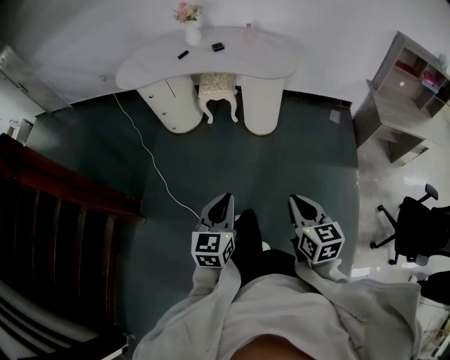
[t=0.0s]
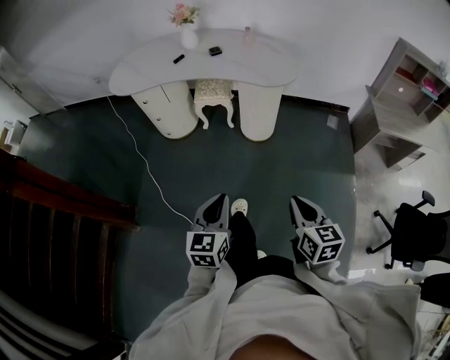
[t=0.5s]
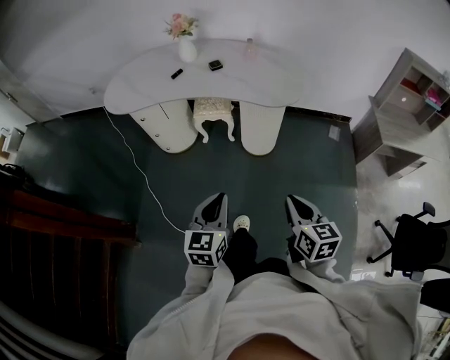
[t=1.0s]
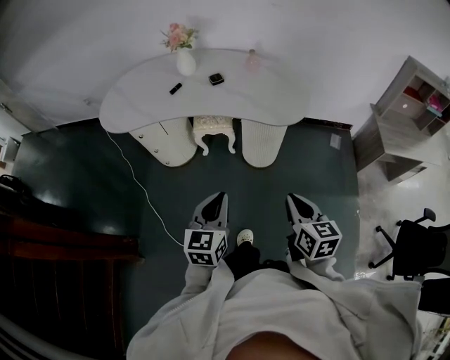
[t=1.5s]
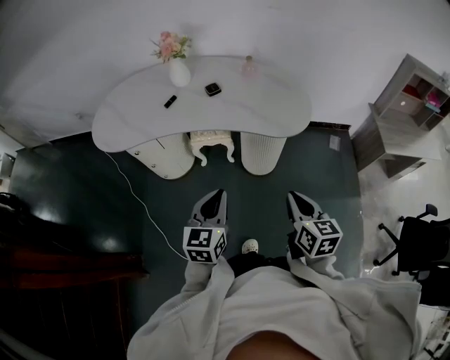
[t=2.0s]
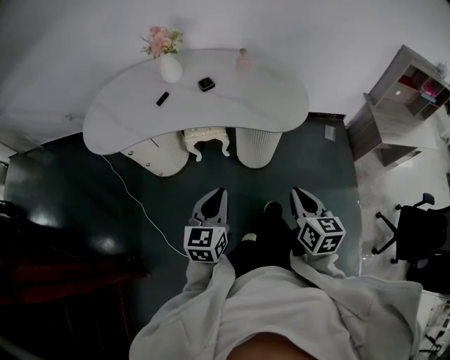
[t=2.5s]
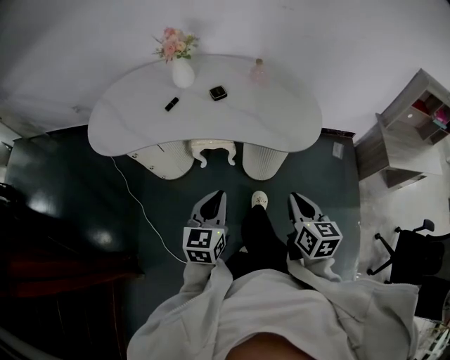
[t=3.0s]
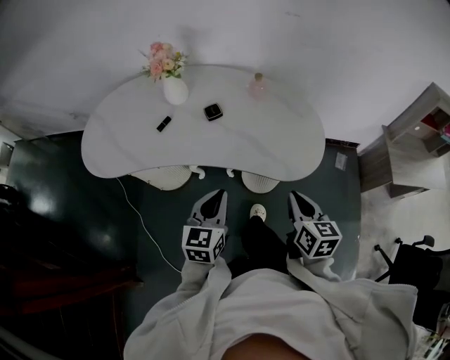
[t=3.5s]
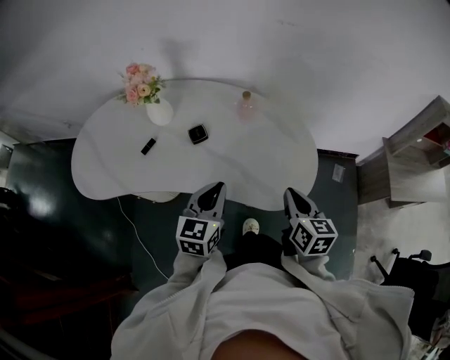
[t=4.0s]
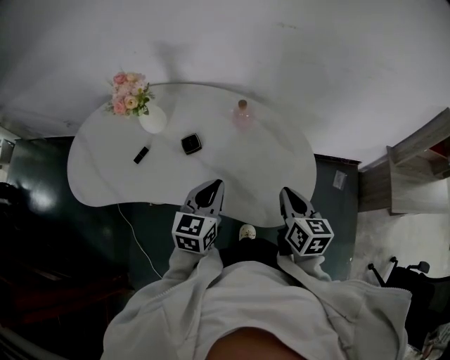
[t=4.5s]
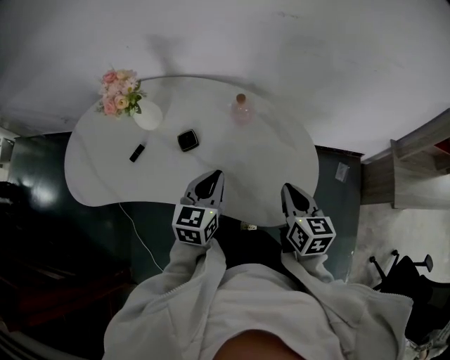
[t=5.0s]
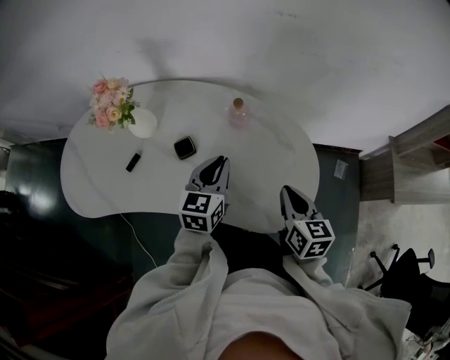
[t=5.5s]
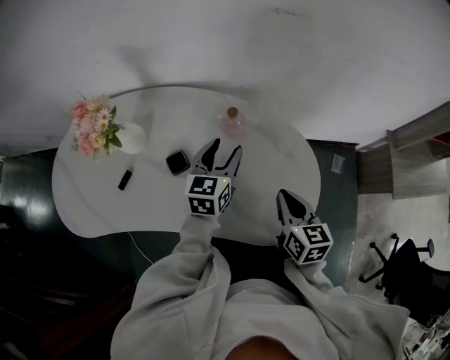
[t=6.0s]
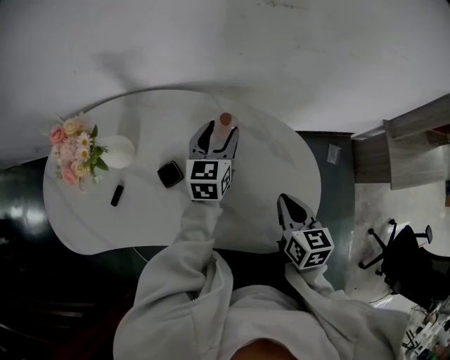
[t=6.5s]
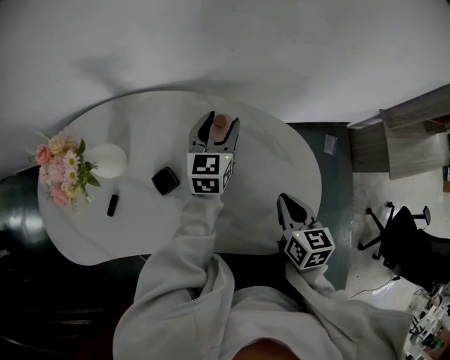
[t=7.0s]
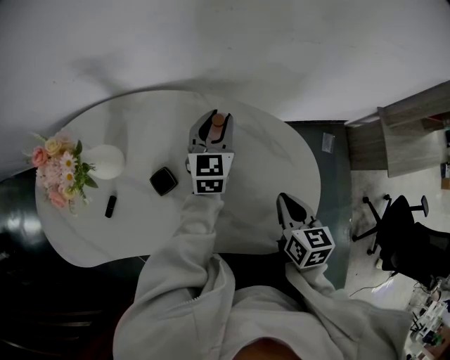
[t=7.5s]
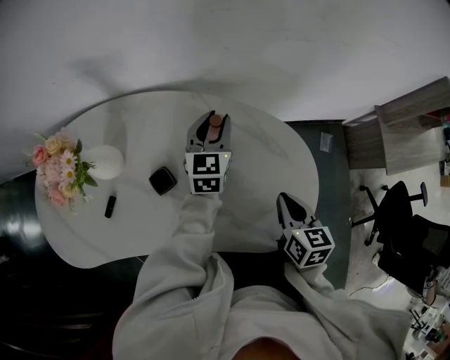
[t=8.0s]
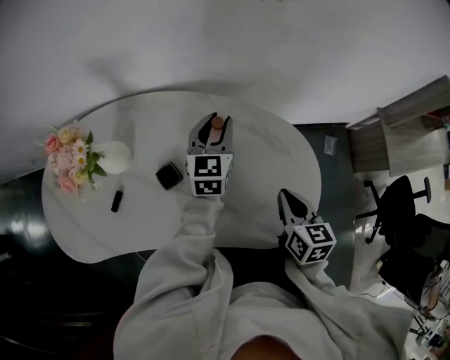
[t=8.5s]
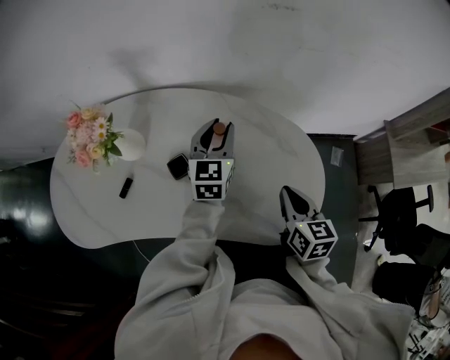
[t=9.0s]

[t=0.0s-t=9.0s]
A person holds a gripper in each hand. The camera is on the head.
t=0.0s to t=2.0s: Both grippers travel together forward, some 35 cm.
t=2.0s to t=4.5s: Both grippers travel together forward, about 35 cm.
t=4.5s to t=7.0s: The right gripper heads forward and downward, covering some 10 cm. Meanwhile the left gripper is displaced forward by about 30 cm, and opens its fingers.
t=7.0s to t=9.0s: The left gripper shifts roughly 5 cm backward, and closes its fingers.

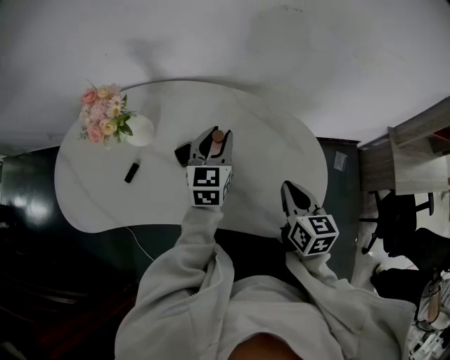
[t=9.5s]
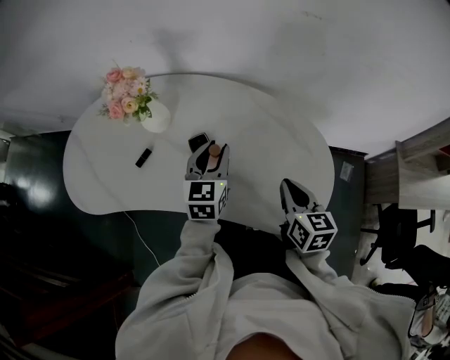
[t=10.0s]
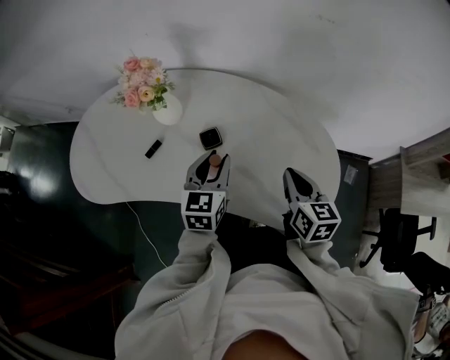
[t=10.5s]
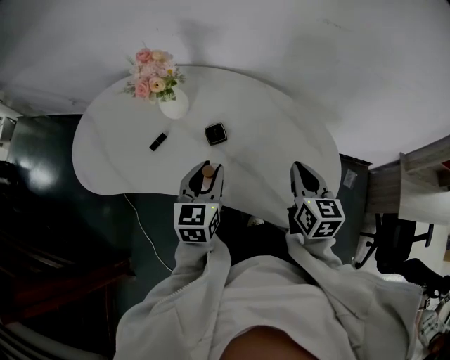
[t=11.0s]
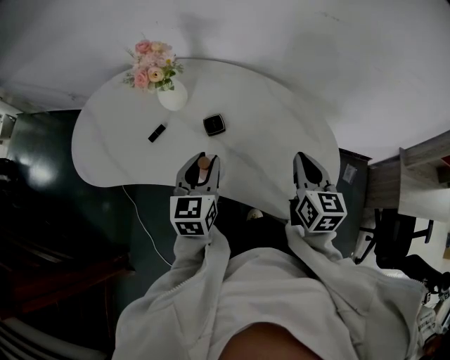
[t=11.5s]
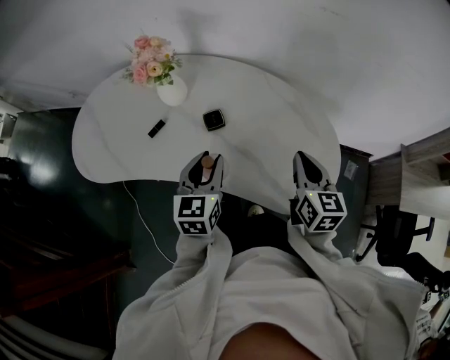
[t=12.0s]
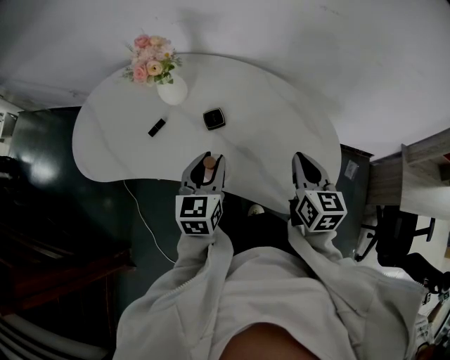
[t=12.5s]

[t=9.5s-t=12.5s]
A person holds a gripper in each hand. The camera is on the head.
t=9.5s to t=11.0s: The right gripper shifts by approximately 5 cm. The left gripper moves backward and to the left, approximately 20 cm.
t=11.0s to t=12.5s: The grippers stay close to where they were, moving slightly.

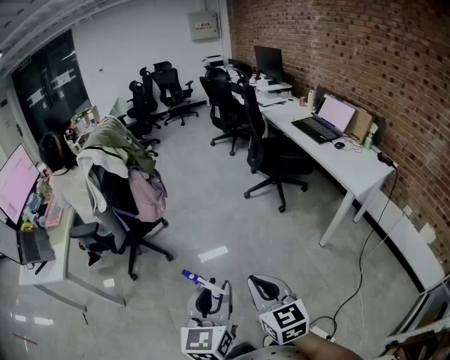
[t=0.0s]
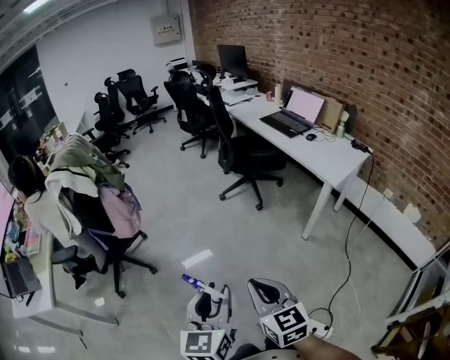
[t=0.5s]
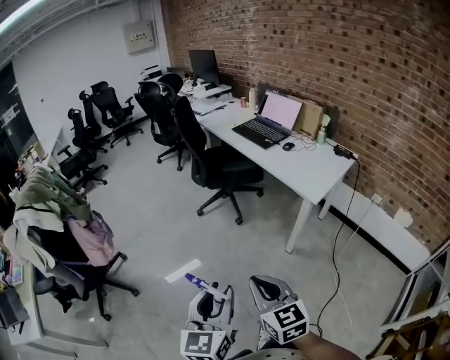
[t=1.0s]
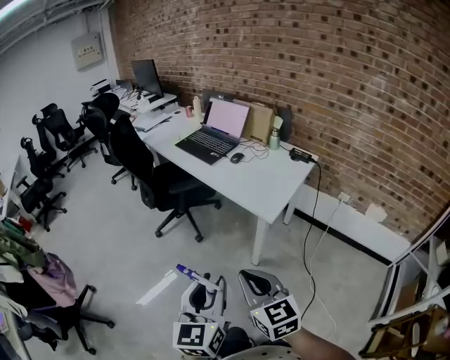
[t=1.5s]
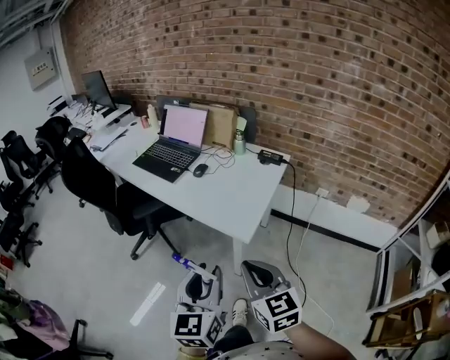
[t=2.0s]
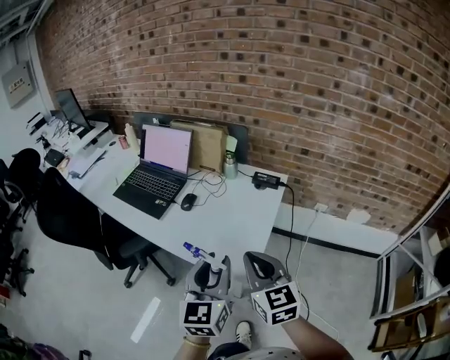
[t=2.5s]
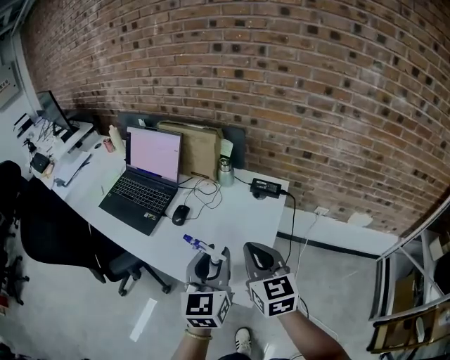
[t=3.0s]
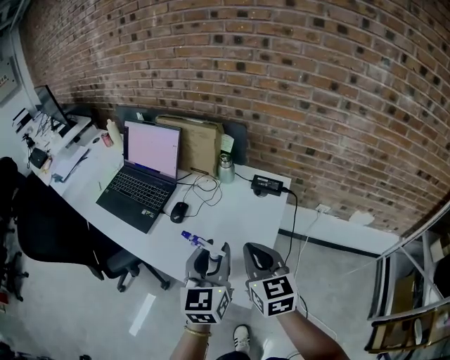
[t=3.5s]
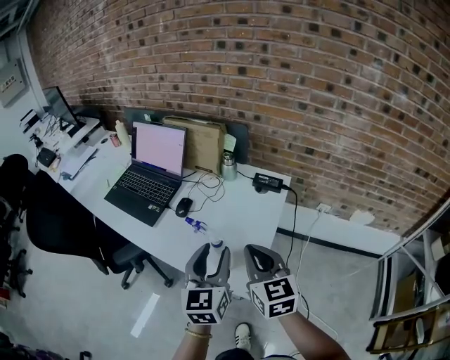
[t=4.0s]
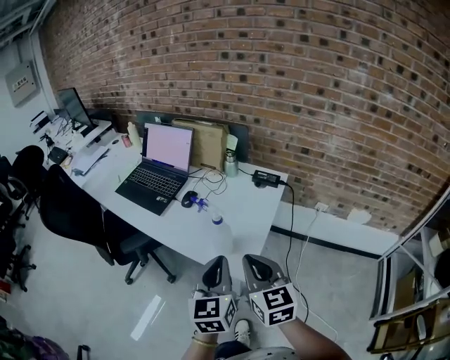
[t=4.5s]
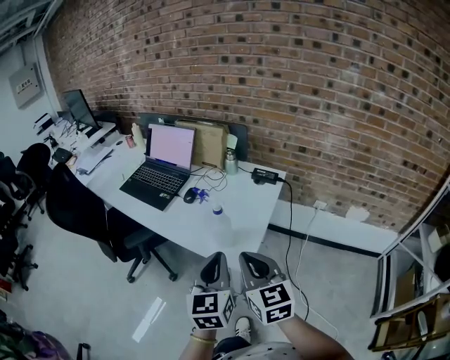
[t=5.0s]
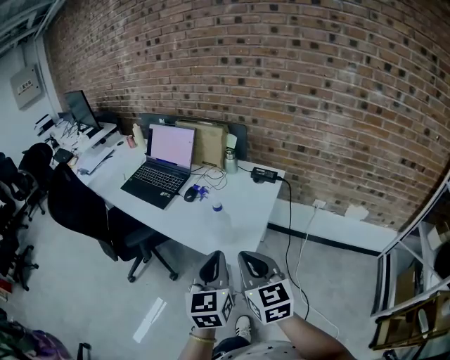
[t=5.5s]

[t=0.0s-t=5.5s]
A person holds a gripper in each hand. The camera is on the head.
t=0.0s to t=2.0s: The pair of grippers is taken roughly 60 cm. The left gripper turns by some 40 degrees; the right gripper turns by approximately 40 degrees.
t=2.0s to t=3.5s: Both grippers move forward, approximately 35 cm.
t=3.5s to t=5.5s: The two grippers go approximately 20 cm backward. The left gripper closes.

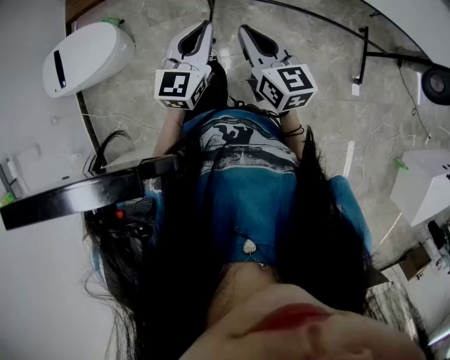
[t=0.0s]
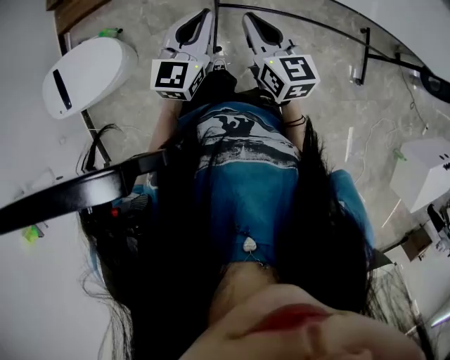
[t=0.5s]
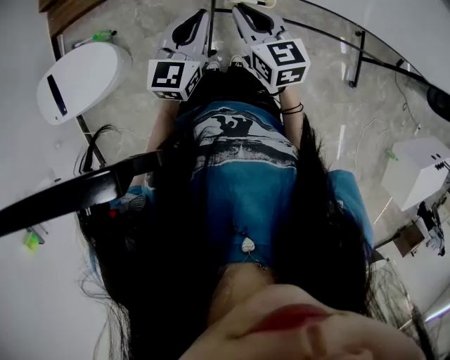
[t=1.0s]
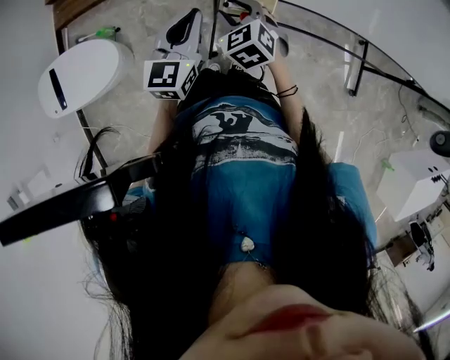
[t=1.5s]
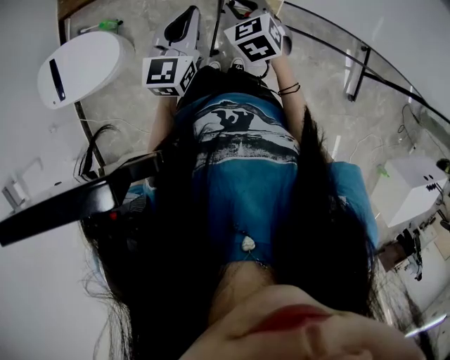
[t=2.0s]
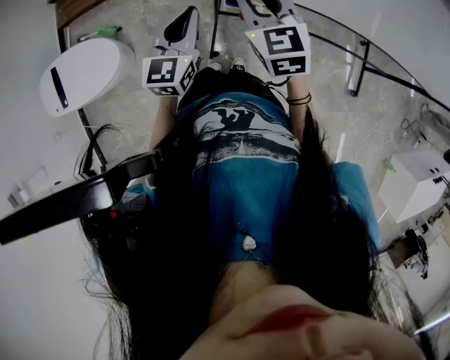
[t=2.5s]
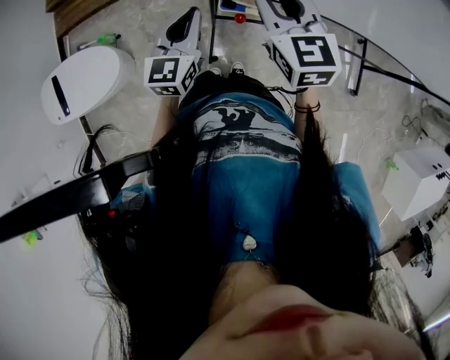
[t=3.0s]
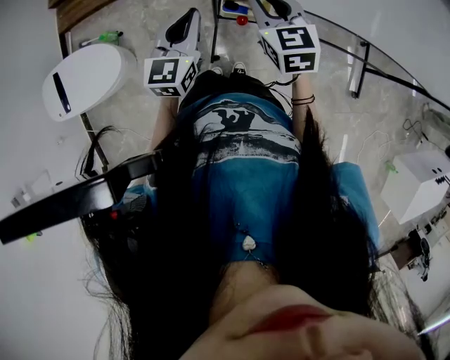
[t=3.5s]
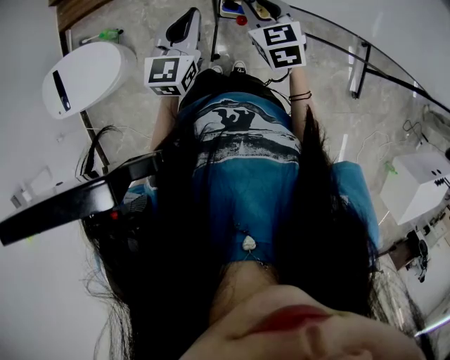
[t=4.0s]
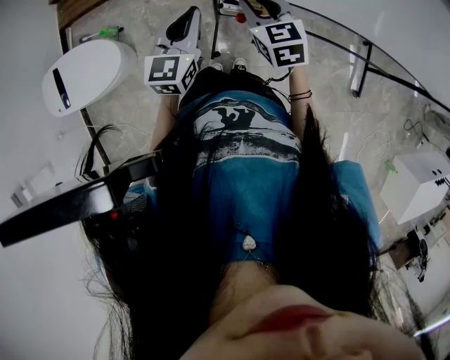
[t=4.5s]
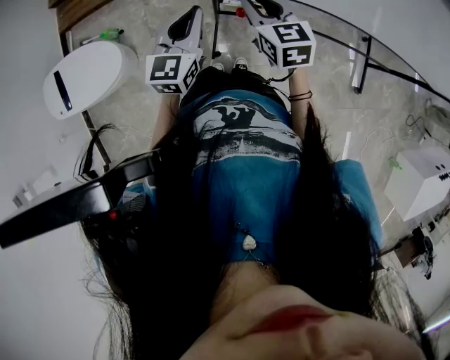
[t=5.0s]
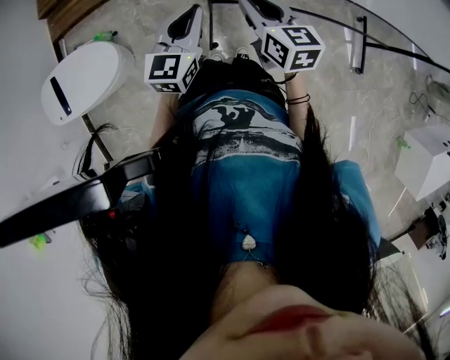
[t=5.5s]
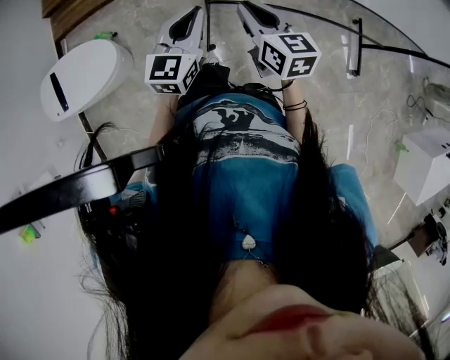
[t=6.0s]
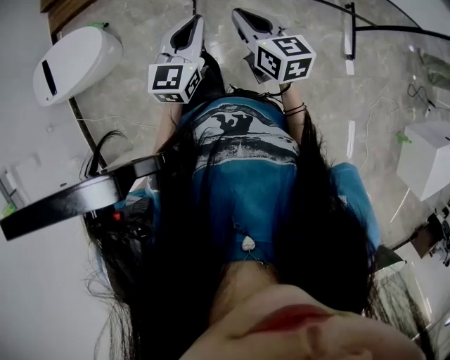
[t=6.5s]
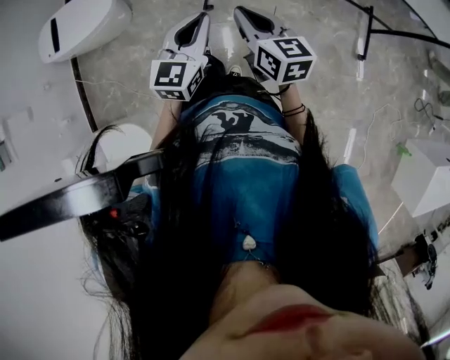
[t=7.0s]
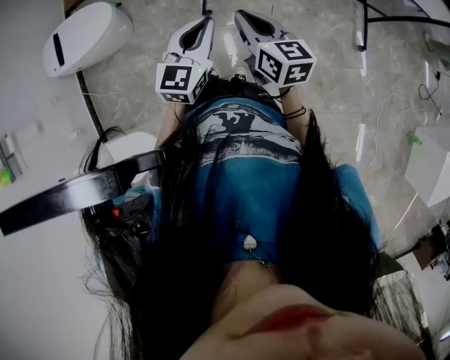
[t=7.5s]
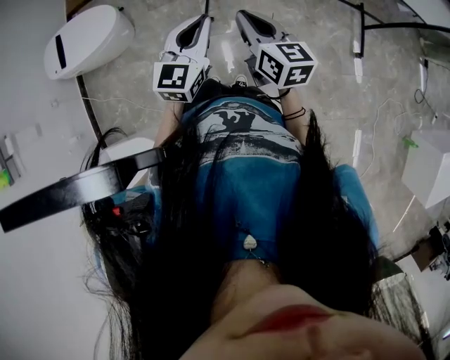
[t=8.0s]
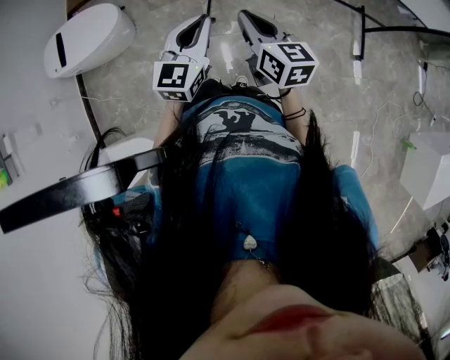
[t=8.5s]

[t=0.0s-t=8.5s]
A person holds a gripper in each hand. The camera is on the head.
t=0.0s to t=2.0s: The grippers both shift forward by approximately 30 cm. The right gripper points its fingers roughly 30 degrees further downward, and opens.
t=2.0s to t=4.0s: The right gripper goes roughly 5 cm to the right, and reaches about 15 cm upward, then returns.
t=4.0s to t=6.5s: Both grippers travel together backward, about 35 cm. The right gripper changes its angle by roughly 30 degrees.
t=6.5s to t=8.5s: The two grippers go roughly 15 cm backward.
